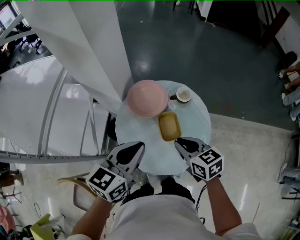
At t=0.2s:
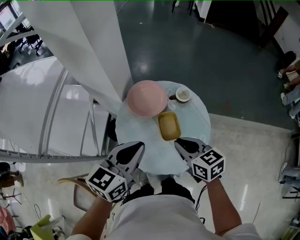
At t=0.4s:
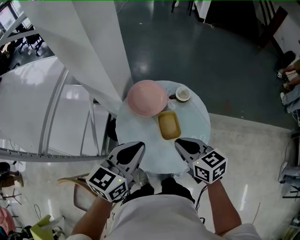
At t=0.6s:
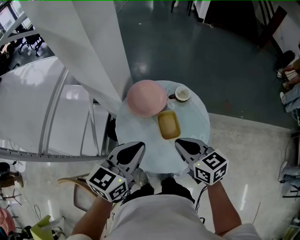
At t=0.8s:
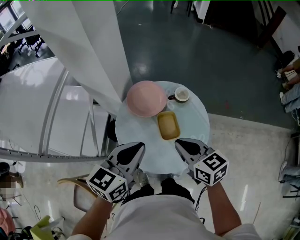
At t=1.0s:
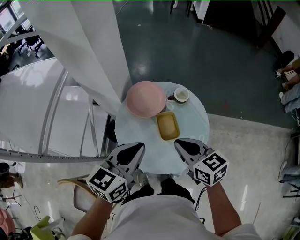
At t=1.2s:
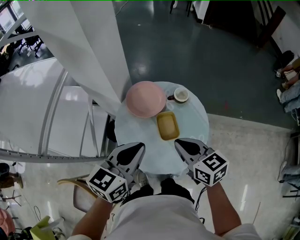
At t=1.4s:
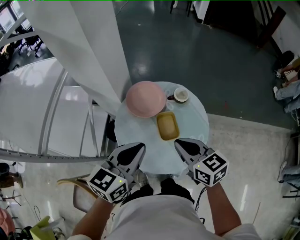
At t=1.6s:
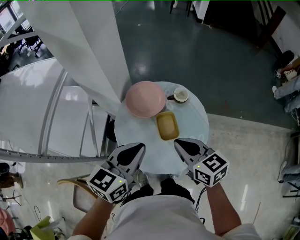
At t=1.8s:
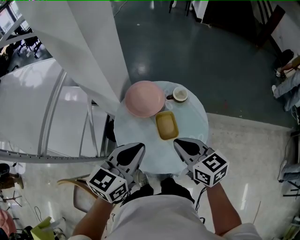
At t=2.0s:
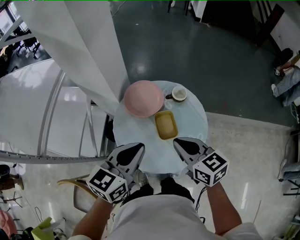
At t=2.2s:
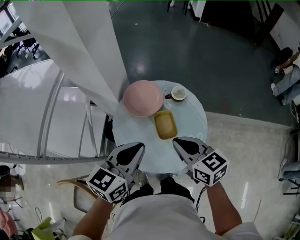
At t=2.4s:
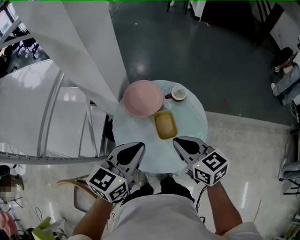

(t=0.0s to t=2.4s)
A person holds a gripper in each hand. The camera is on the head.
t=0.0s - t=1.2s: The right gripper moves upward, approximately 5 cm.
t=1.2s - t=2.4s: Both grippers stay put.

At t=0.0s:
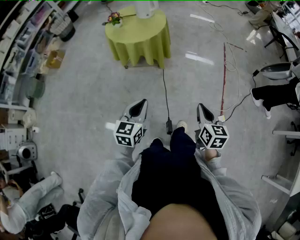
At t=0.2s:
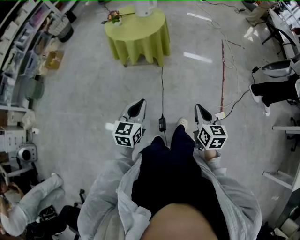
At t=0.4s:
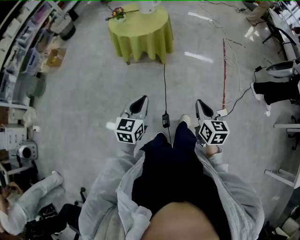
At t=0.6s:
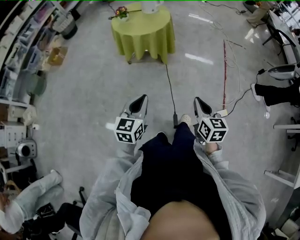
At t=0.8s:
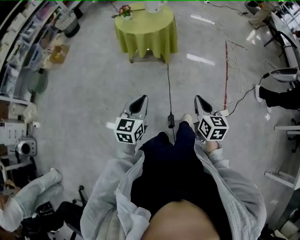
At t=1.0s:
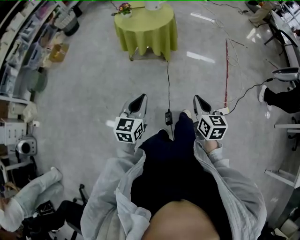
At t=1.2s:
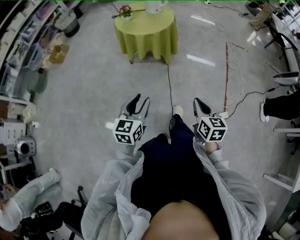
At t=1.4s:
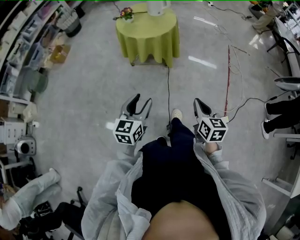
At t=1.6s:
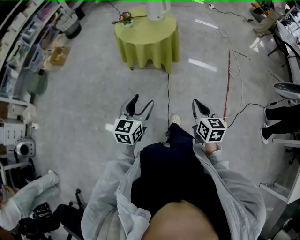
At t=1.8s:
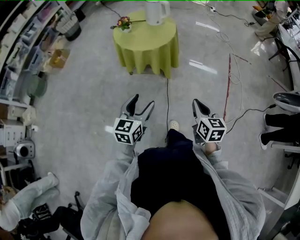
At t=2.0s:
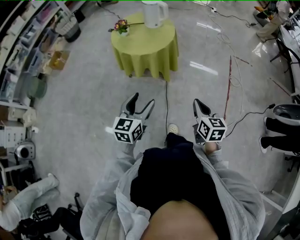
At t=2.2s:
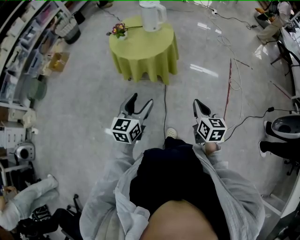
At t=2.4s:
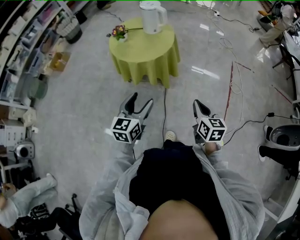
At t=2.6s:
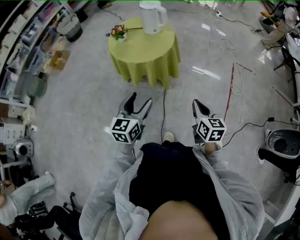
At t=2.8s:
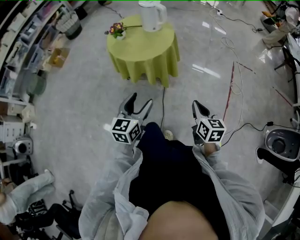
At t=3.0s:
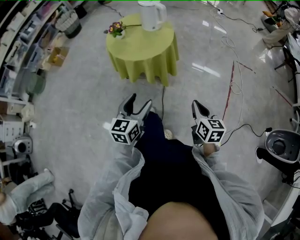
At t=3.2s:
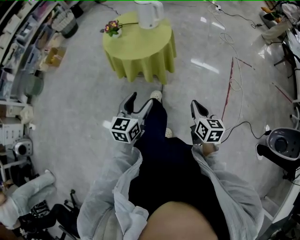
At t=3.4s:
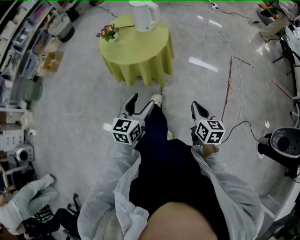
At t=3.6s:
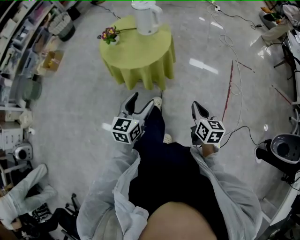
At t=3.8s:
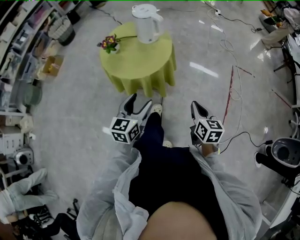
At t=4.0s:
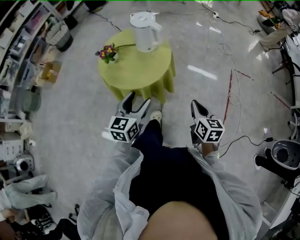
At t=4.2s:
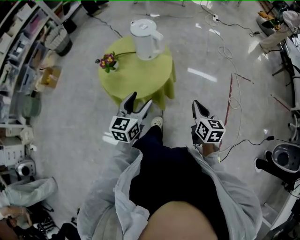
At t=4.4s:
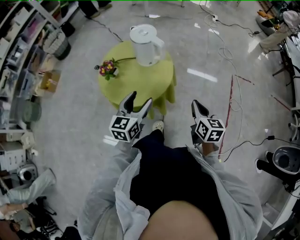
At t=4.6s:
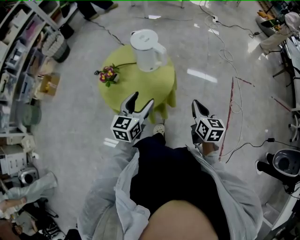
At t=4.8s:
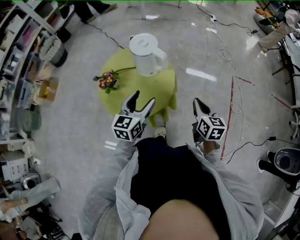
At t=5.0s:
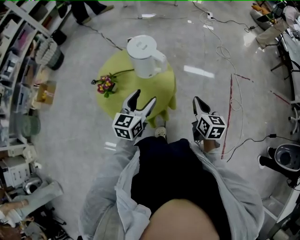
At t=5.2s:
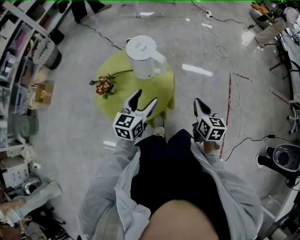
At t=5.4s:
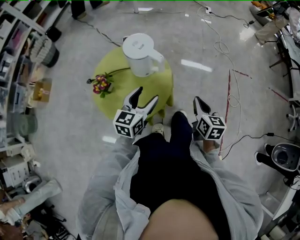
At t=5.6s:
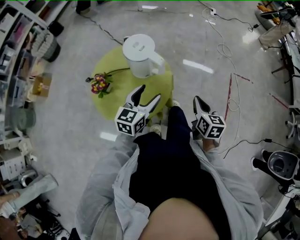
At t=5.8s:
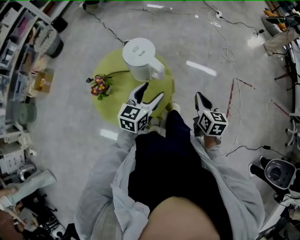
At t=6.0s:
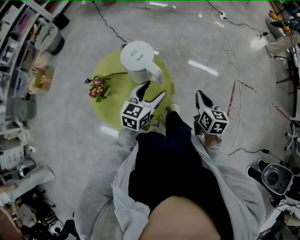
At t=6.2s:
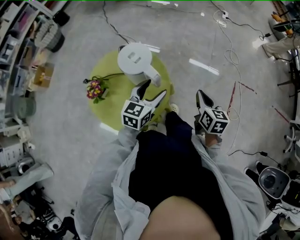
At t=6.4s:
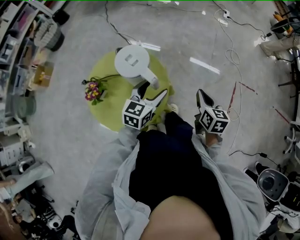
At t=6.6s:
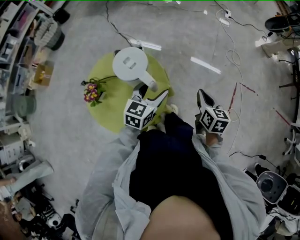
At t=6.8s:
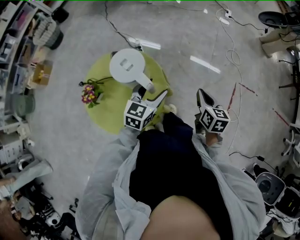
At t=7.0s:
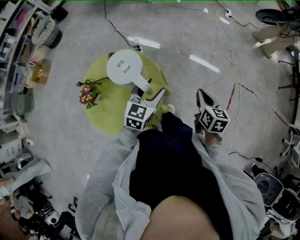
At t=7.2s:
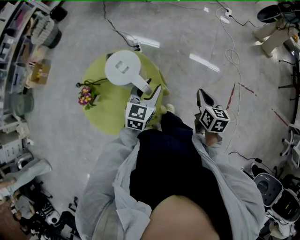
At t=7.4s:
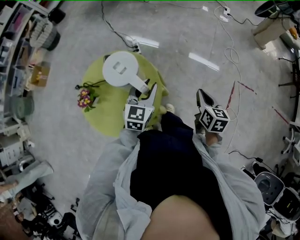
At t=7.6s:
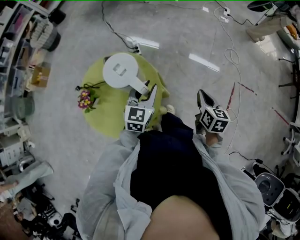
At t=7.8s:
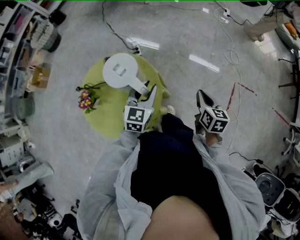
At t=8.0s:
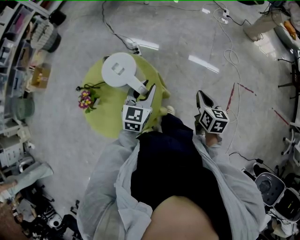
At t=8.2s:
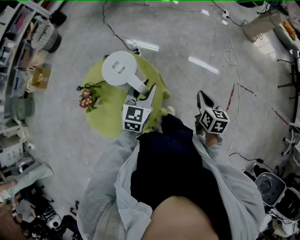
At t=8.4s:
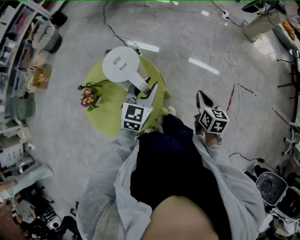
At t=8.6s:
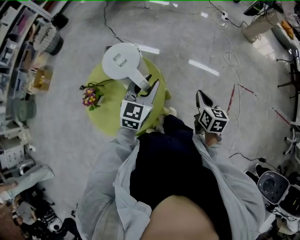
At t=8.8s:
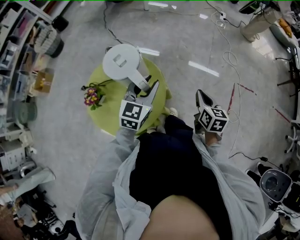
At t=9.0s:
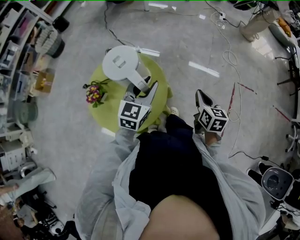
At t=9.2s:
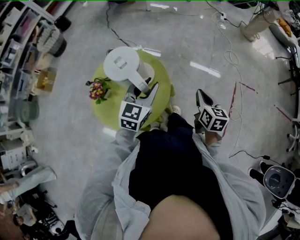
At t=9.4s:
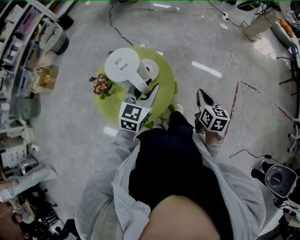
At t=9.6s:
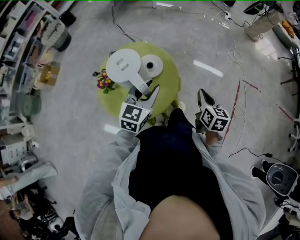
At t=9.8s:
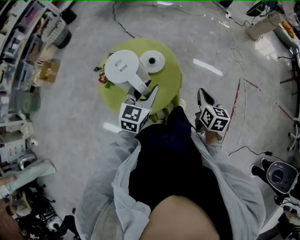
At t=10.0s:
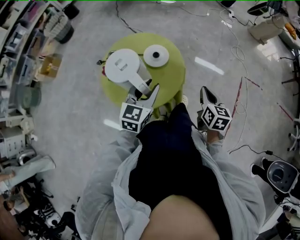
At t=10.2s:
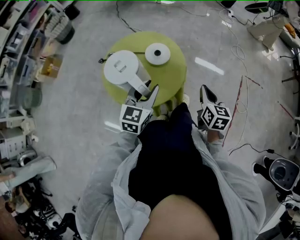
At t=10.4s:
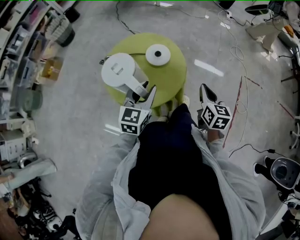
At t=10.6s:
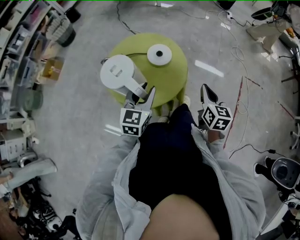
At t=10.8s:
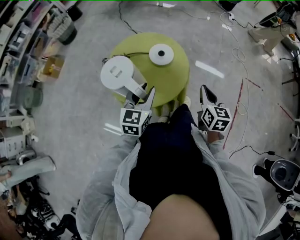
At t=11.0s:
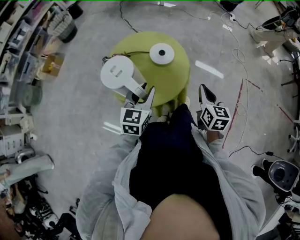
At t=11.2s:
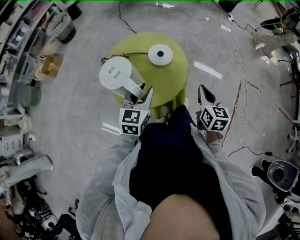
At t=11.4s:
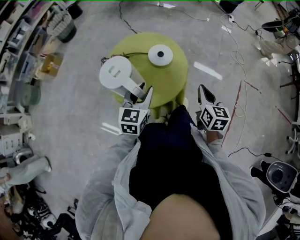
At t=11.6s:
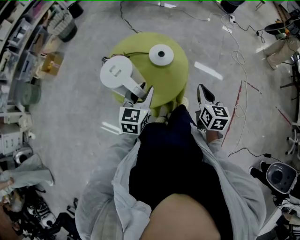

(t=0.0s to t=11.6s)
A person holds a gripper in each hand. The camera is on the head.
t=0.0s - t=1.4s: The grippers both shift to the left by roughly 5 cm. The left gripper opens up.
t=1.4s - t=2.8s: Both grippers travel together forward, about 20 cm.
t=2.8s - t=4.4s: Both grippers travel together forward, about 25 cm.
t=4.4s - t=5.8s: Both grippers move forward, approximately 15 cm.
t=5.8s - t=7.2s: The grippers both shift forward by roughly 10 cm. The left gripper closes.
t=7.2s - t=8.8s: The left gripper shifts approximately 5 cm upward.
t=8.8s - t=10.2s: The two grippers go some 15 cm backward and to the left.
t=10.2s - t=11.6s: The grippers move only a little.

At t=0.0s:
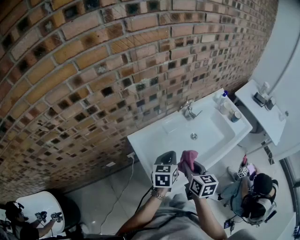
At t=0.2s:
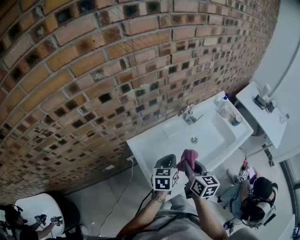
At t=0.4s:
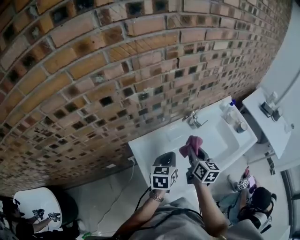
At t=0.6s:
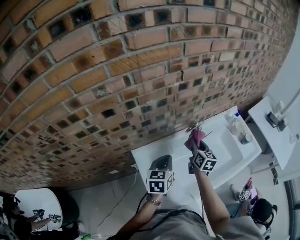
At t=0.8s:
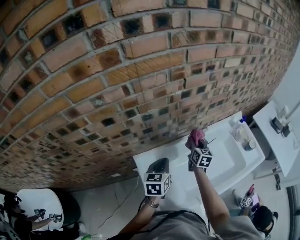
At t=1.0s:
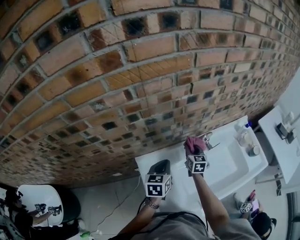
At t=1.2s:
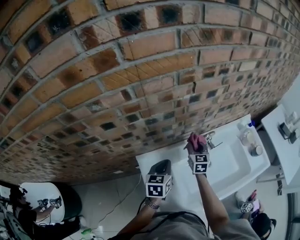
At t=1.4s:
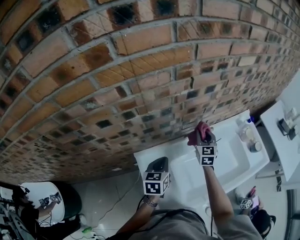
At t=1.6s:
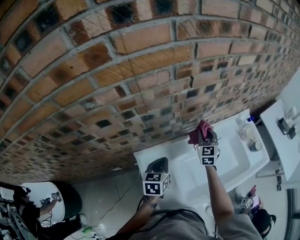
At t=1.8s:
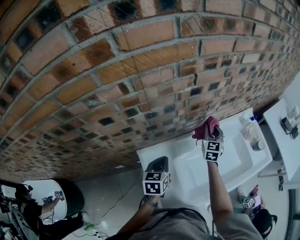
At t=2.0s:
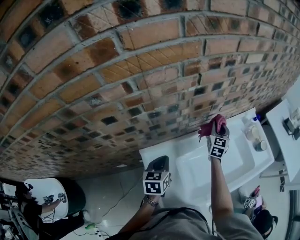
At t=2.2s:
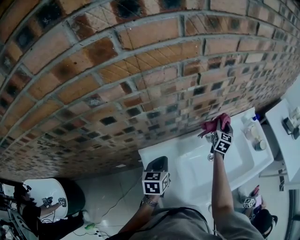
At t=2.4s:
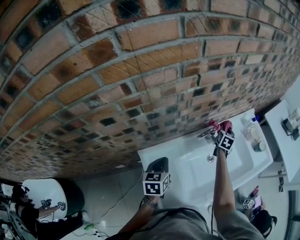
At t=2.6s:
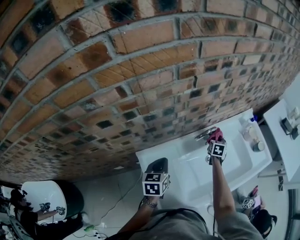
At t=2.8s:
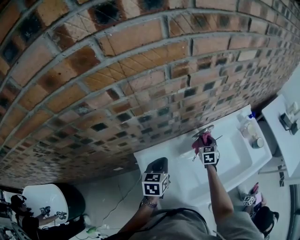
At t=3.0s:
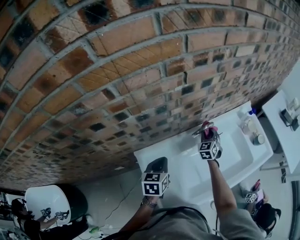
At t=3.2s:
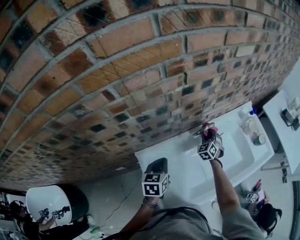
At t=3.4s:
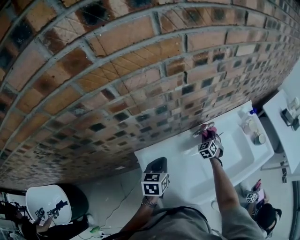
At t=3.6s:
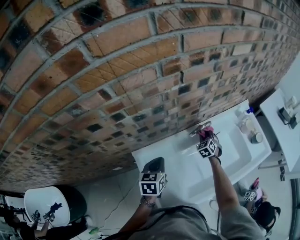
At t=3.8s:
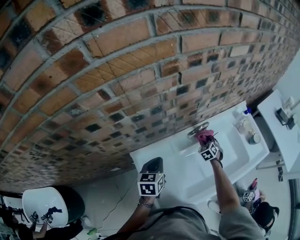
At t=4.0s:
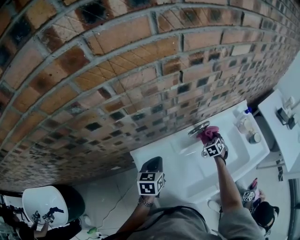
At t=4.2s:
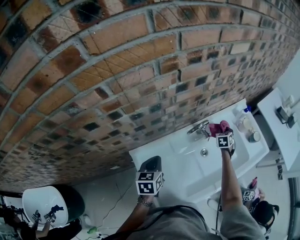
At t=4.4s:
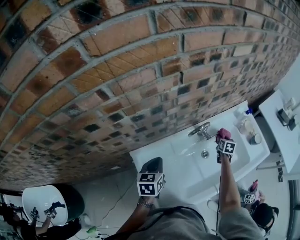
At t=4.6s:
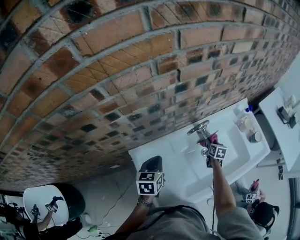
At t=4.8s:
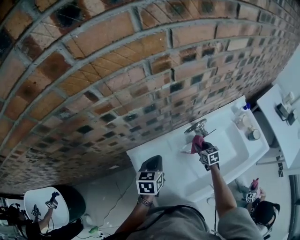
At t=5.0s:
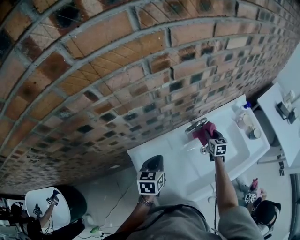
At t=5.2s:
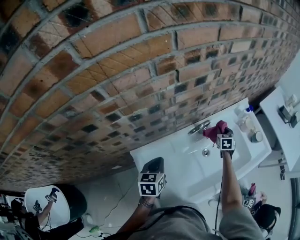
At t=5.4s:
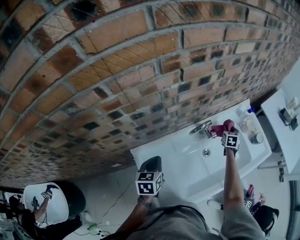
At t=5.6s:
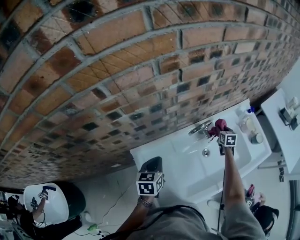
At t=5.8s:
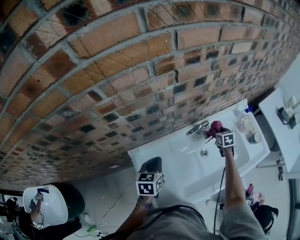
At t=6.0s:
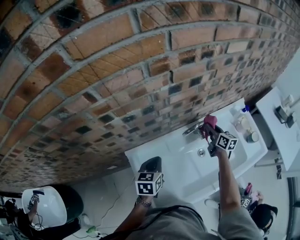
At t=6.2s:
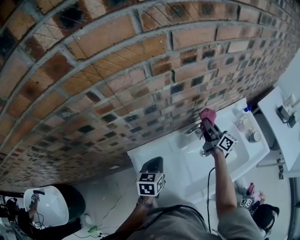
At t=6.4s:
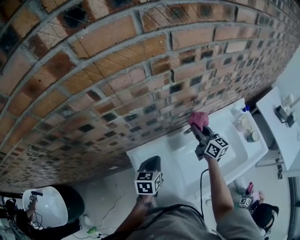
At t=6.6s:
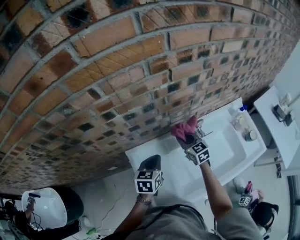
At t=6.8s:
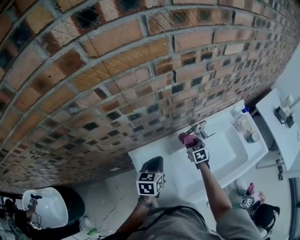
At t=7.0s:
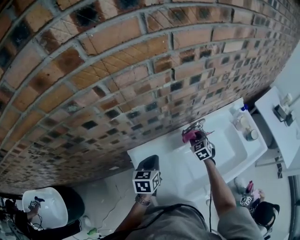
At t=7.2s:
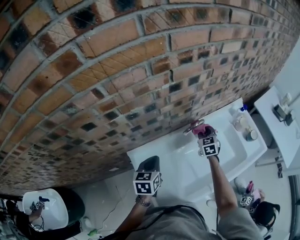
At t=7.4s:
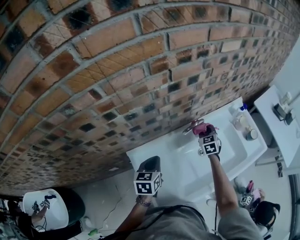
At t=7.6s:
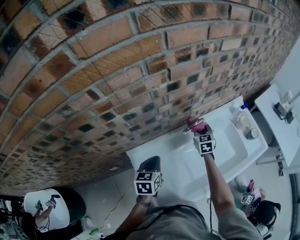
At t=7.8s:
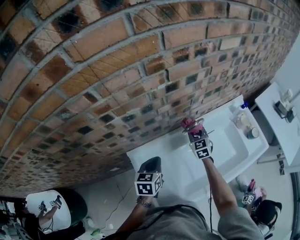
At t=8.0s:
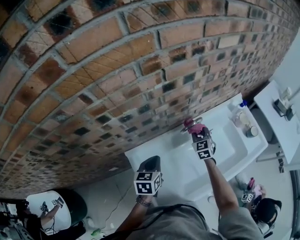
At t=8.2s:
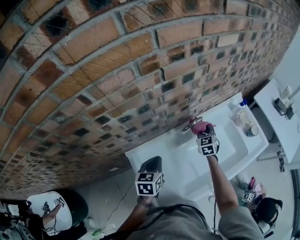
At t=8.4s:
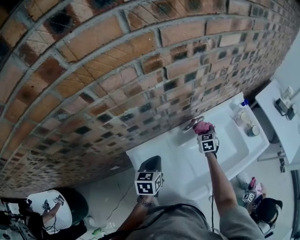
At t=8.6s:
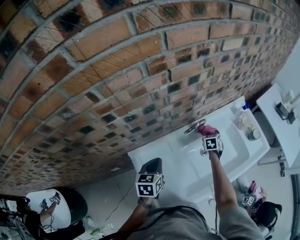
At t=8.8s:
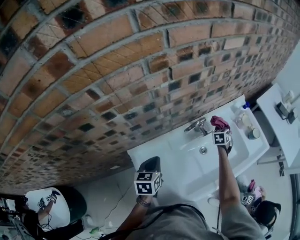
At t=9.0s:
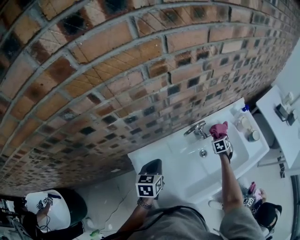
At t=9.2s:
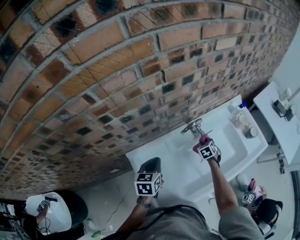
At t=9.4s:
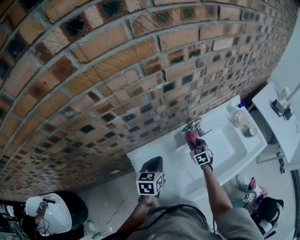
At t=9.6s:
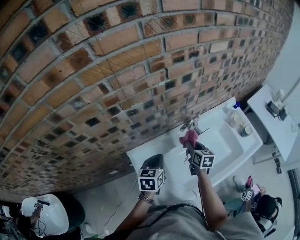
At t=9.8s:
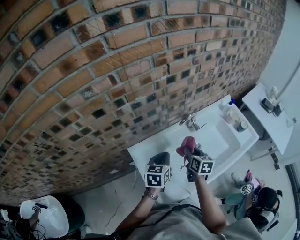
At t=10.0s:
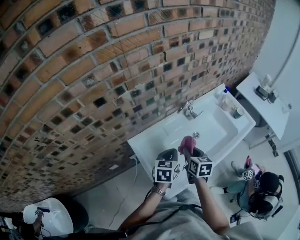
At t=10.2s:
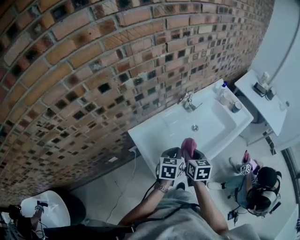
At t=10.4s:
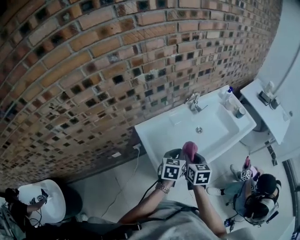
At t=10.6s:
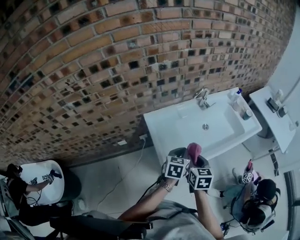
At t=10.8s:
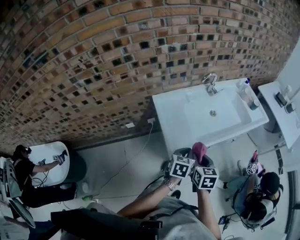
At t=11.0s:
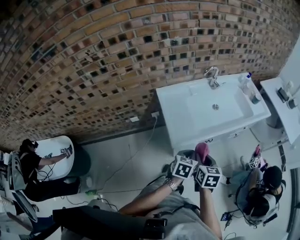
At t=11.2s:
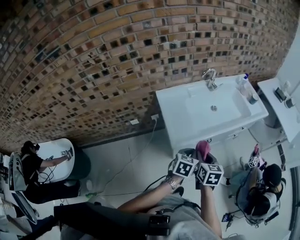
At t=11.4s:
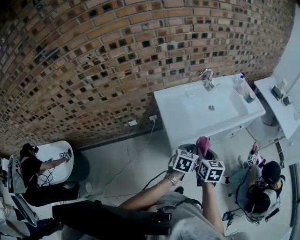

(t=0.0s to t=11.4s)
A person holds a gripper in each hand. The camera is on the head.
t=0.0s - t=1.4s: The right gripper travels forward by approximately 35 cm, and changes its angle by about 30 degrees; the left gripper shifts approximately 15 cm forward and to the left.
t=1.4s - t=2.8s: The right gripper goes about 10 cm downward.
t=2.8s - t=4.2s: The right gripper moves to the right, some 15 cm, and rotates about 20 degrees.
t=4.2s - t=5.6s: The right gripper moves left and right over approximately 15 cm, changing direction 2 times, and turns by roughly 30 degrees.
t=5.6s - t=7.2s: The right gripper shifts approximately 15 cm to the left and upward, and turns by approximately 30 degrees.
t=7.2s - t=8.6s: The right gripper shifts about 10 cm downward and to the right, and rotates roughly 20 degrees.
t=8.6s - t=10.0s: The right gripper heads backward, upward and to the left, covering some 35 cm, and turns by roughly 30 degrees; the left gripper goes roughly 10 cm backward and to the right.
t=10.0s - t=11.4s: Both grippers travel together backward, roughly 30 cm.
